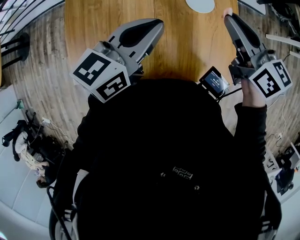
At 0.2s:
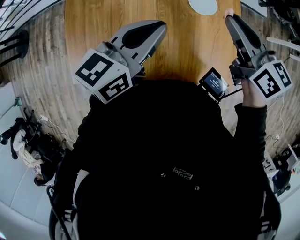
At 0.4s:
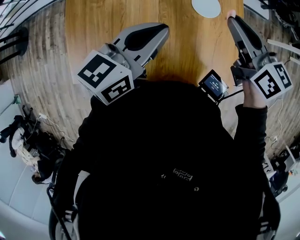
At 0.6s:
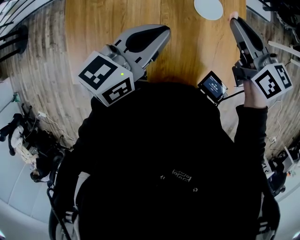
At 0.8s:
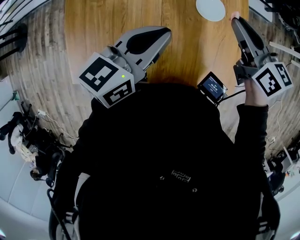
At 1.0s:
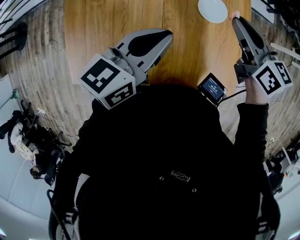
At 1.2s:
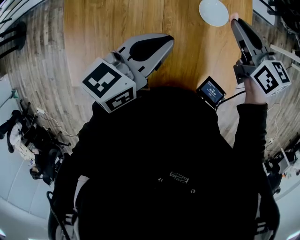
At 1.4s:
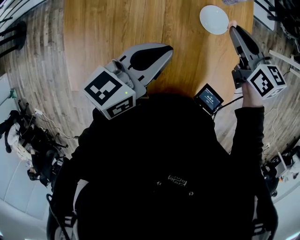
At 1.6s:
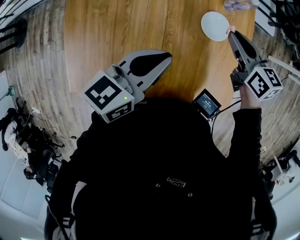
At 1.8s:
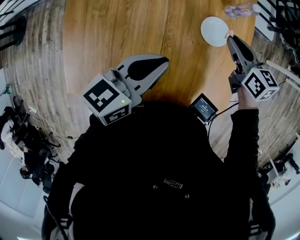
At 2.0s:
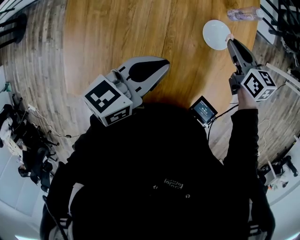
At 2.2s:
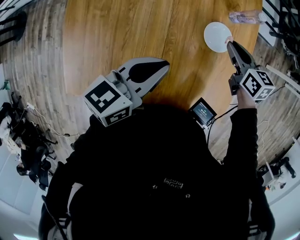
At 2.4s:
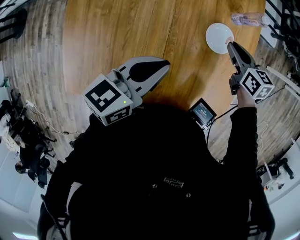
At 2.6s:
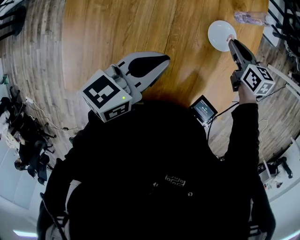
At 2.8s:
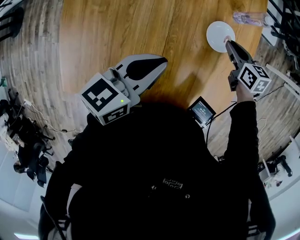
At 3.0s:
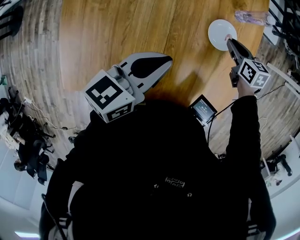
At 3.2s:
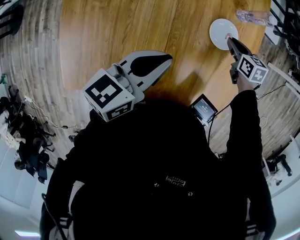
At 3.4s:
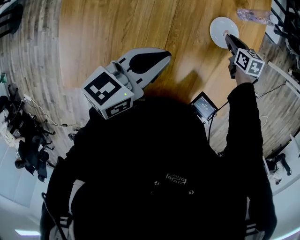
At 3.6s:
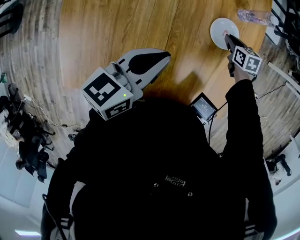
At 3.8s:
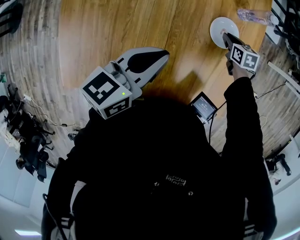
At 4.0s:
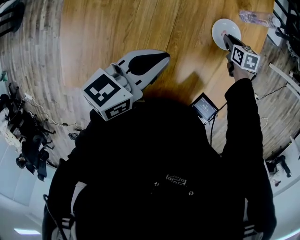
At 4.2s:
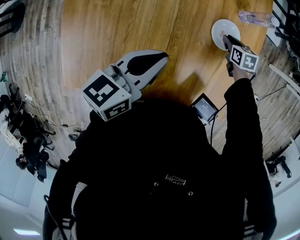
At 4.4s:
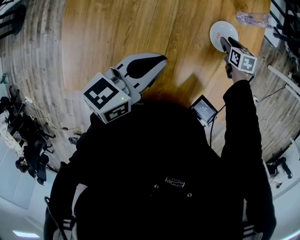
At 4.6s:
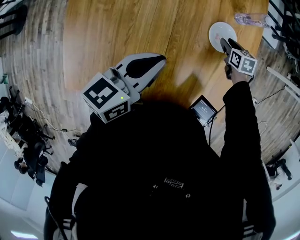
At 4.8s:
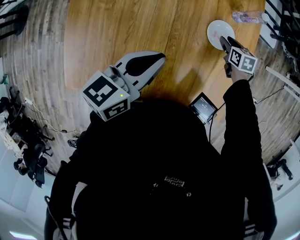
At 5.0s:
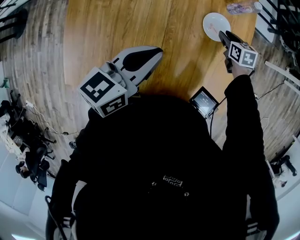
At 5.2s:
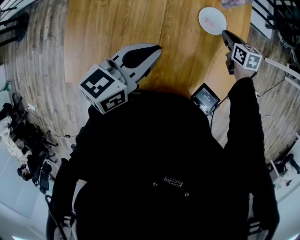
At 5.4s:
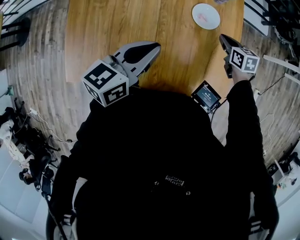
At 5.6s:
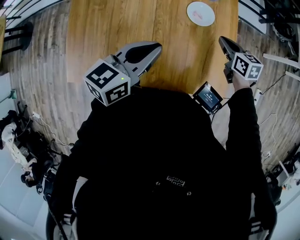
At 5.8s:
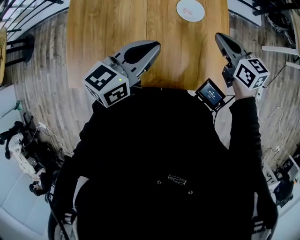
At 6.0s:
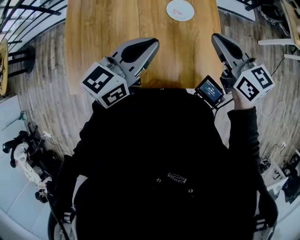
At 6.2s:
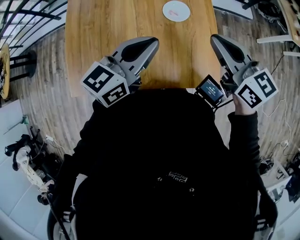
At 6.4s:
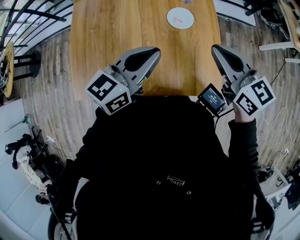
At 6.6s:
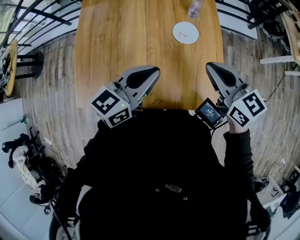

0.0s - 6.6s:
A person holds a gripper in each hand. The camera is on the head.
0.0s - 1.6s: The right gripper moves downward and forward, approximately 15 cm. Meanwhile the left gripper is displaced downward by roughly 5 cm.
1.6s - 3.2s: The right gripper is displaced downward by roughly 20 cm, and turns by some 20 degrees.
3.2s - 5.0s: The grippers move only a little.
5.0s - 6.6s: The right gripper heads upward and backward, covering roughly 35 cm, tilts its fingers some 40 degrees upward, and closes up. Meanwhile the left gripper goes forward and backward, about 10 cm each way, reversing 2 times.

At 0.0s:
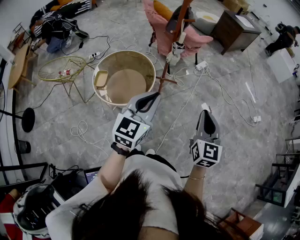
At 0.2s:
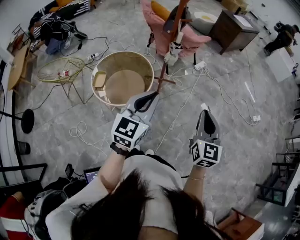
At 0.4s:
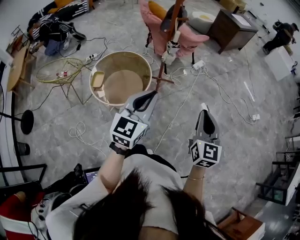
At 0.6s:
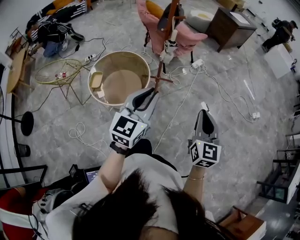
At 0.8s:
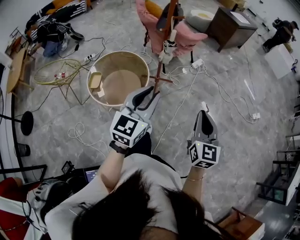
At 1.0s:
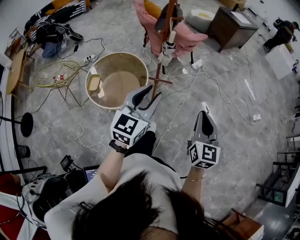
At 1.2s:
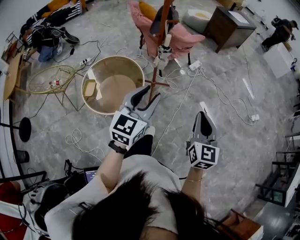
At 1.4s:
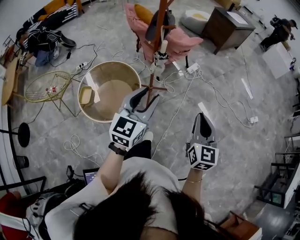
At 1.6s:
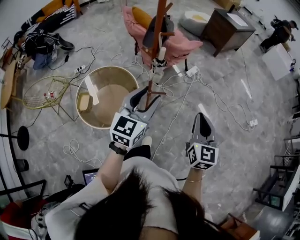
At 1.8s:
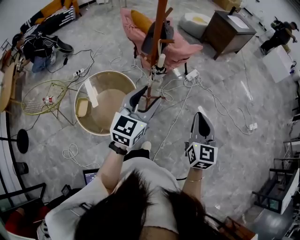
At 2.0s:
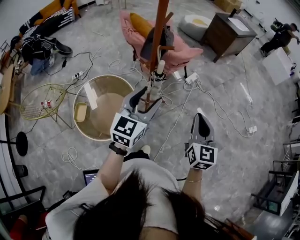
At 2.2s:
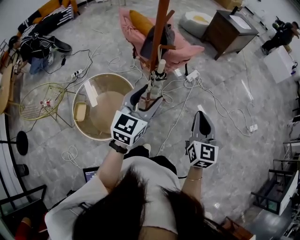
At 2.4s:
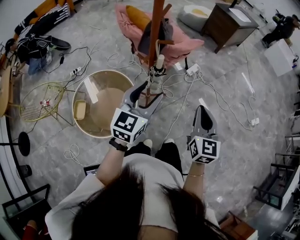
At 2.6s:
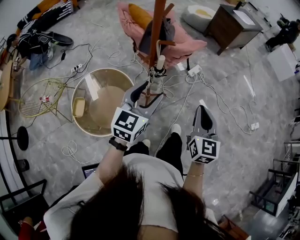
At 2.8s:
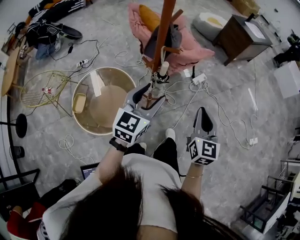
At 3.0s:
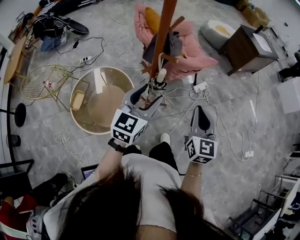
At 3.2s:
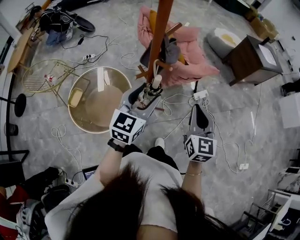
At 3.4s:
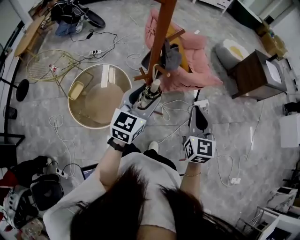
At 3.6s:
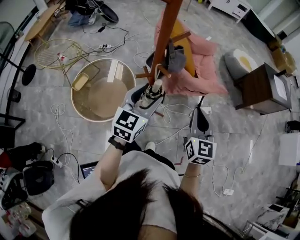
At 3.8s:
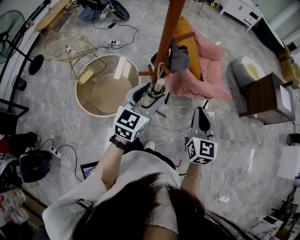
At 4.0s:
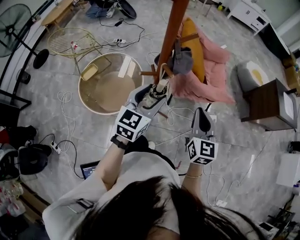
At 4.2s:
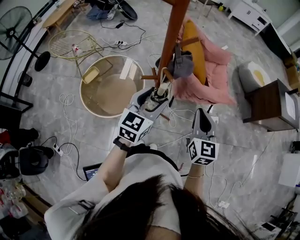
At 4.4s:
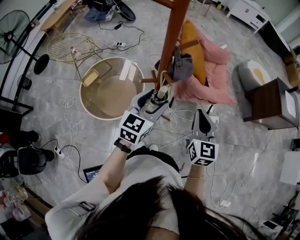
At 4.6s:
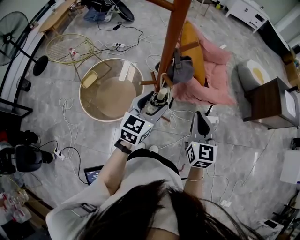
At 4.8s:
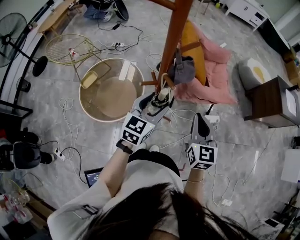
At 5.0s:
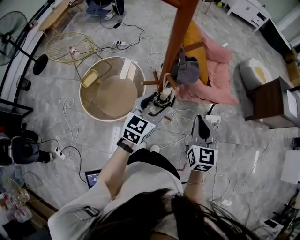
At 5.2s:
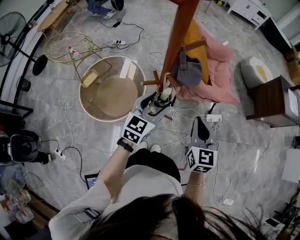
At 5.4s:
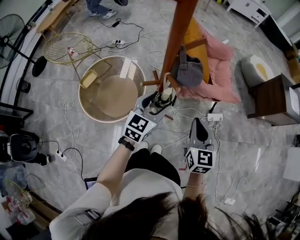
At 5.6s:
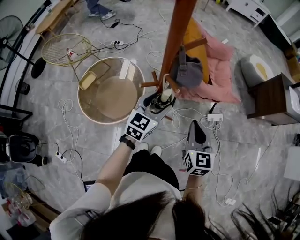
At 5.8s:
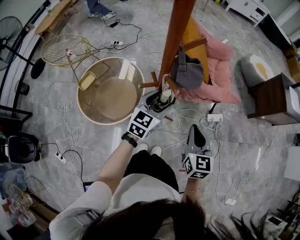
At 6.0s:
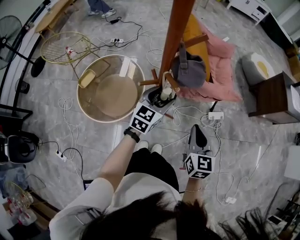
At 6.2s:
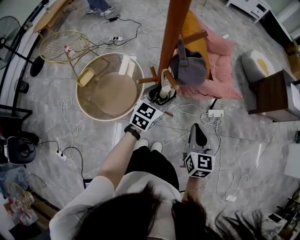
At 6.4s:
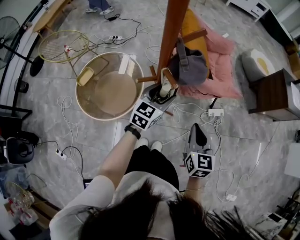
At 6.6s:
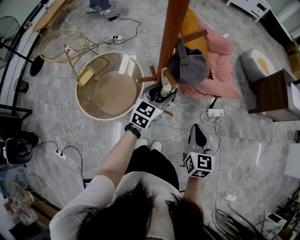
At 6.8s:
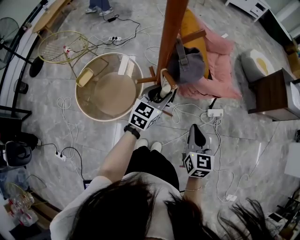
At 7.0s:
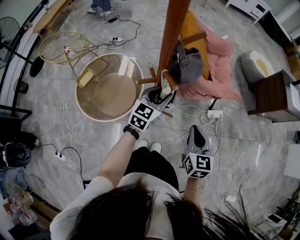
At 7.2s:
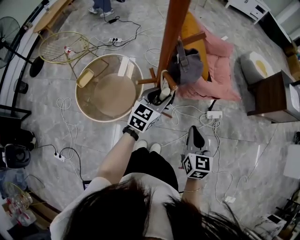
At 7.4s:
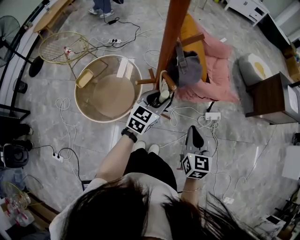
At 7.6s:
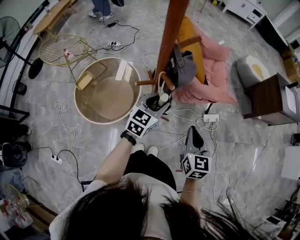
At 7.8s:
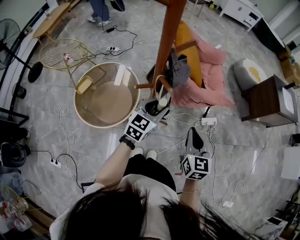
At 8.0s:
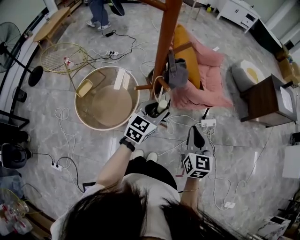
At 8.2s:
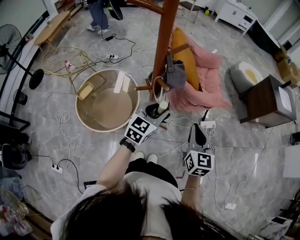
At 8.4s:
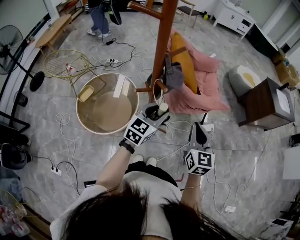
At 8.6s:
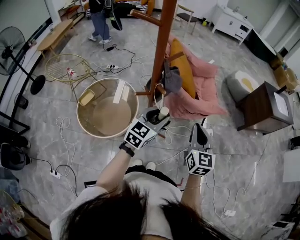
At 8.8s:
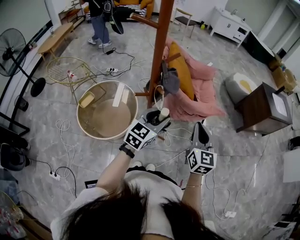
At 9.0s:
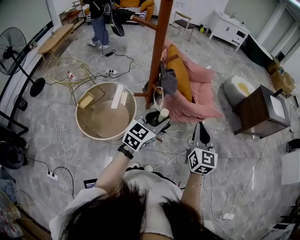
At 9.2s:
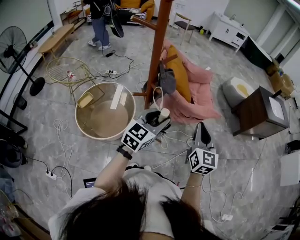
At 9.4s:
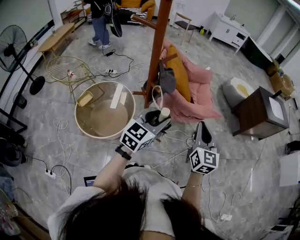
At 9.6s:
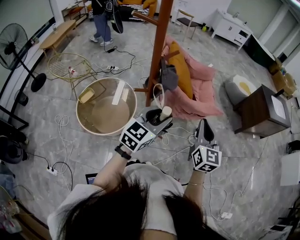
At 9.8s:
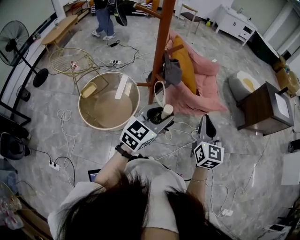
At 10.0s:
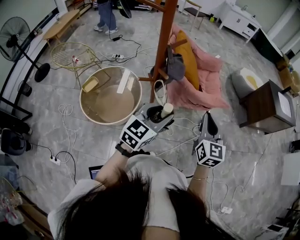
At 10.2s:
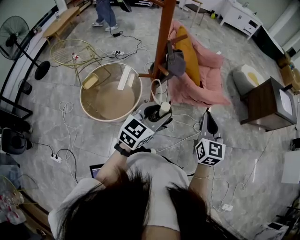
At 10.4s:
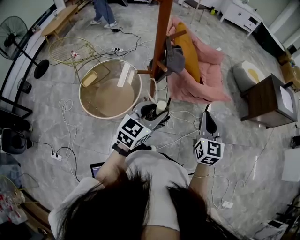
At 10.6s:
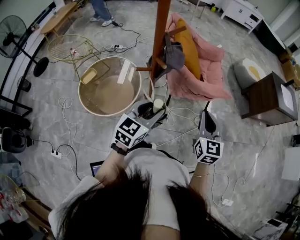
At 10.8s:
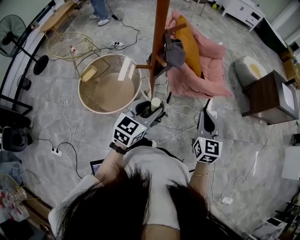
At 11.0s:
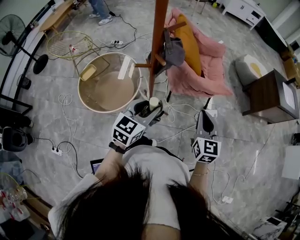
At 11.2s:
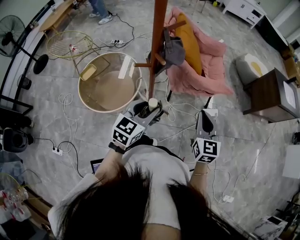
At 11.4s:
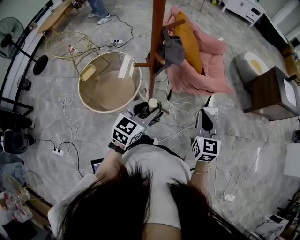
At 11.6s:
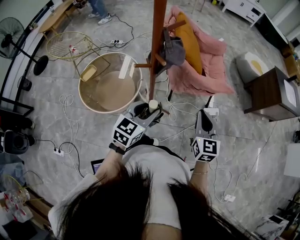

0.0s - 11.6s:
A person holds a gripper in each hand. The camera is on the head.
0.0s - 1.4s: The two grippers go some 15 cm forward. The left gripper opens up.
1.4s - 2.8s: The two grippers go about 25 cm forward.
2.8s - 4.4s: The left gripper changes place by some 15 cm, and turns by some 30 degrees. Meanwhile the right gripper moves some 20 cm, and turns by some 40 degrees.
4.4s - 5.8s: The left gripper shifts approximately 10 cm downward and forward, while the right gripper heads downward, covering about 10 cm.
5.8s - 7.2s: There are only small adjustments of the grippers.
7.2s - 8.8s: The right gripper moves upward, approximately 10 cm. The left gripper travels upward, backward and to the right by some 15 cm.
8.8s - 10.2s: The left gripper shifts some 5 cm backward.
10.2s - 11.6s: The two grippers go roughly 5 cm downward.

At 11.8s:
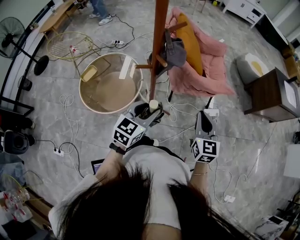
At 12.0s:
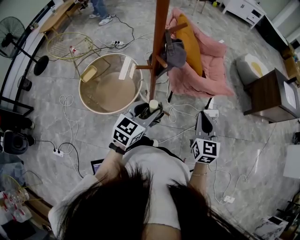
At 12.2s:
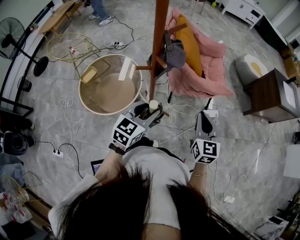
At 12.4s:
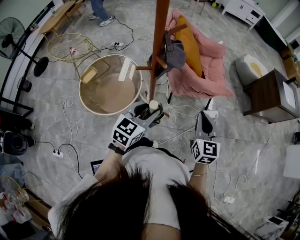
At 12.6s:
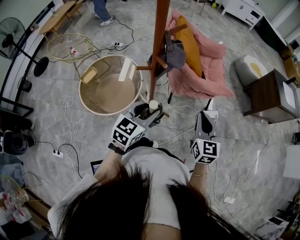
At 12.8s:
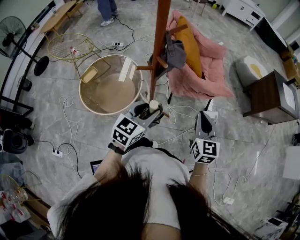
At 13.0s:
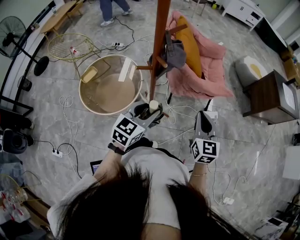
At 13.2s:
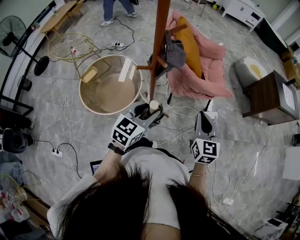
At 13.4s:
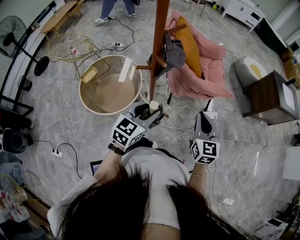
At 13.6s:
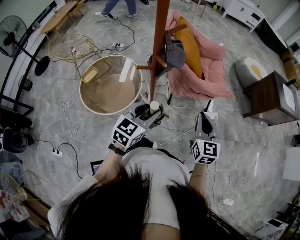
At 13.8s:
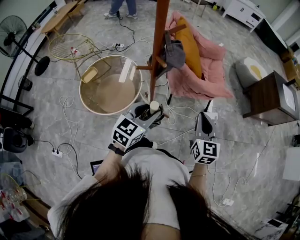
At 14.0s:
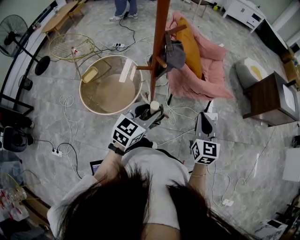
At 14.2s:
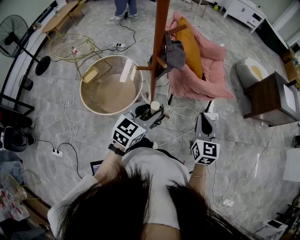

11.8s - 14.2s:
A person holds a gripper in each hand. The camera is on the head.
11.8s - 13.0s: Both grippers stay about where they are.
13.0s - 14.2s: Neither gripper changes place.

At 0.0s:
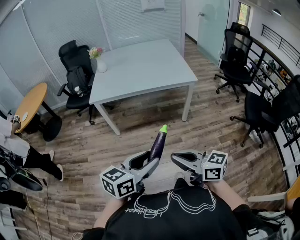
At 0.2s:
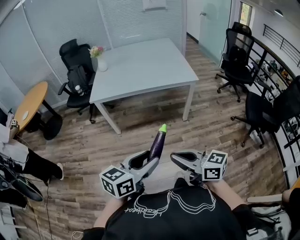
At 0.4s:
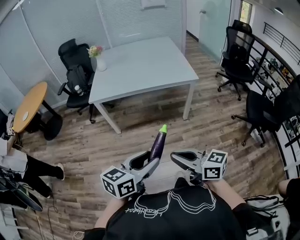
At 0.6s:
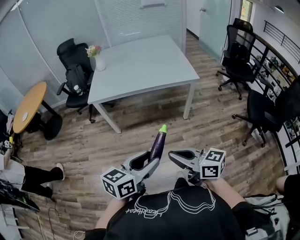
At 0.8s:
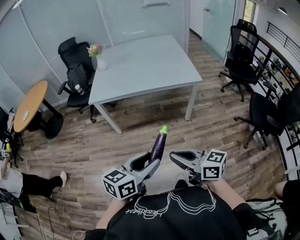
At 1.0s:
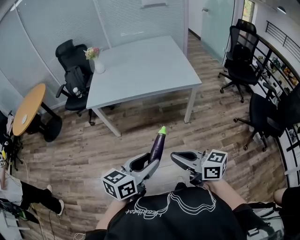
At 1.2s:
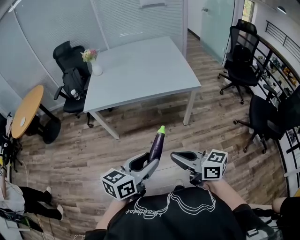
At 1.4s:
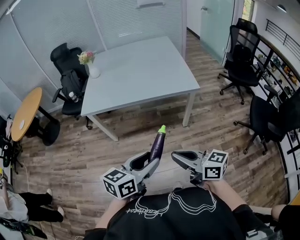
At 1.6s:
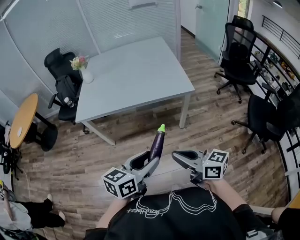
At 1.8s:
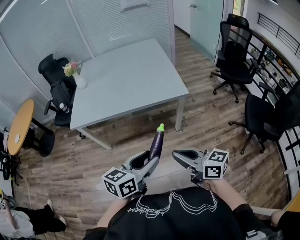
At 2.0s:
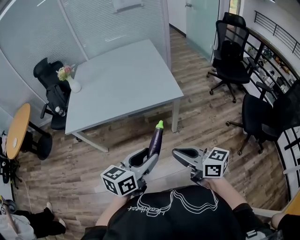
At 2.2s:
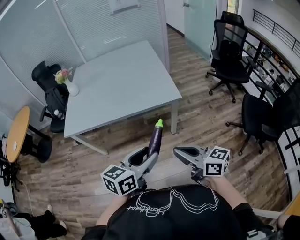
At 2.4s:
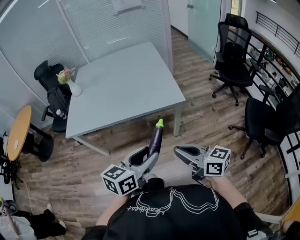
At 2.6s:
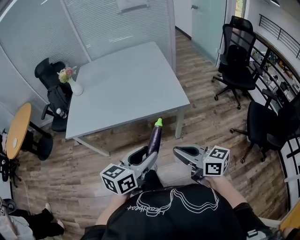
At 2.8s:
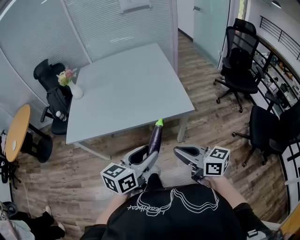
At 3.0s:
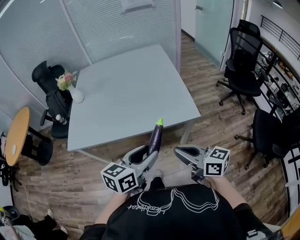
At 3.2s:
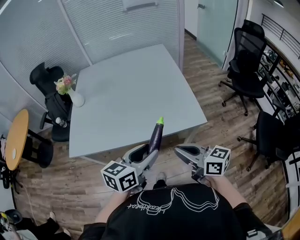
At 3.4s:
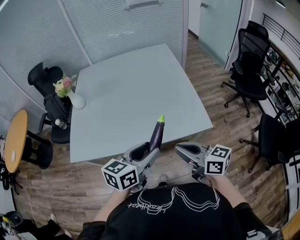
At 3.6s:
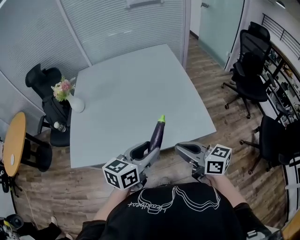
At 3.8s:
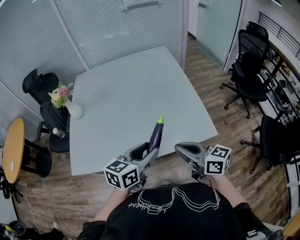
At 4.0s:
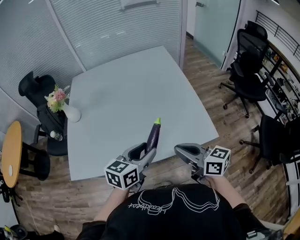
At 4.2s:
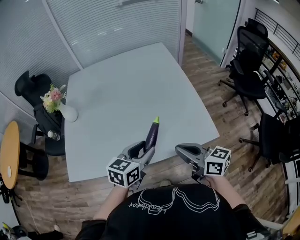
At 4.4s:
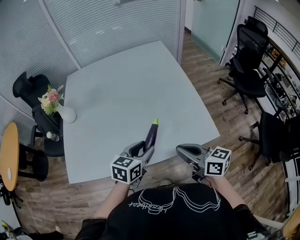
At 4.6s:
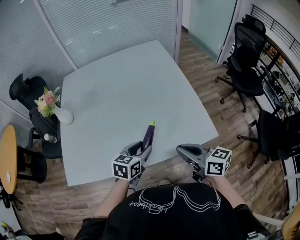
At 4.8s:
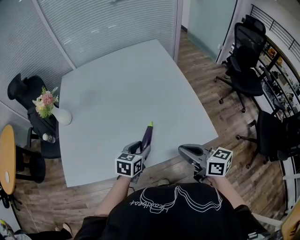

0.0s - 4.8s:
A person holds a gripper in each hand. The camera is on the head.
0.0s - 1.6s: Both grippers travel together forward and to the right, approximately 25 cm.
1.6s - 3.2s: The grippers both shift forward by some 35 cm.
3.2s - 4.8s: The right gripper shifts about 20 cm forward. The left gripper is displaced forward and downward by about 30 cm, and turns by some 20 degrees.
